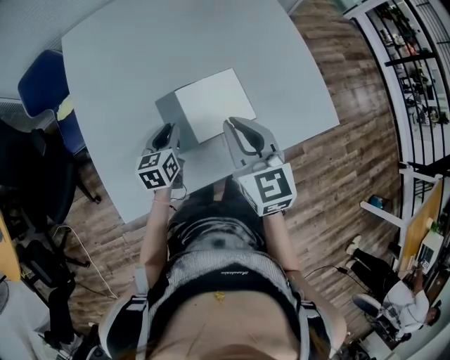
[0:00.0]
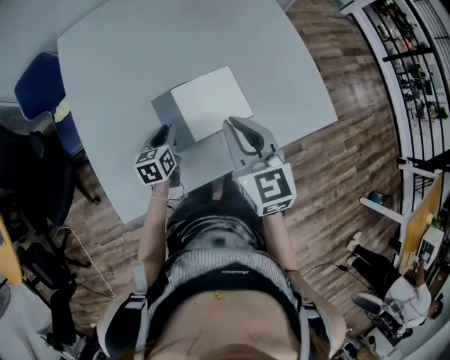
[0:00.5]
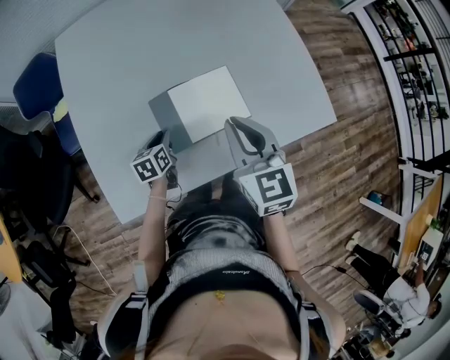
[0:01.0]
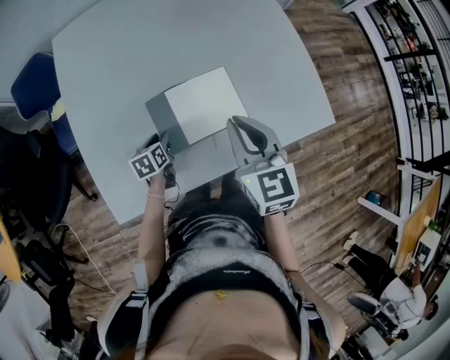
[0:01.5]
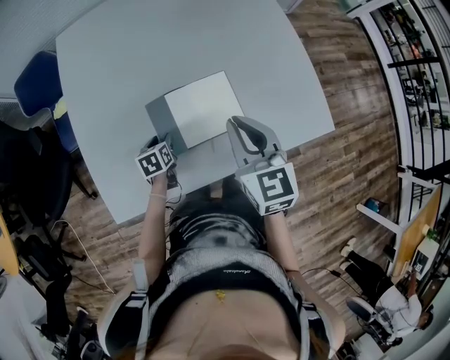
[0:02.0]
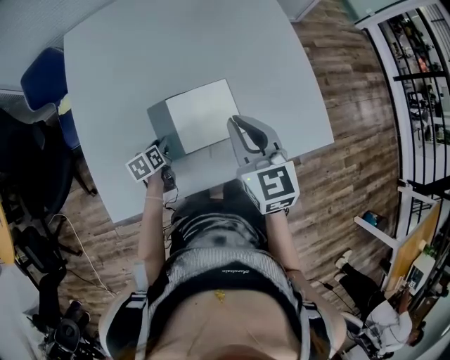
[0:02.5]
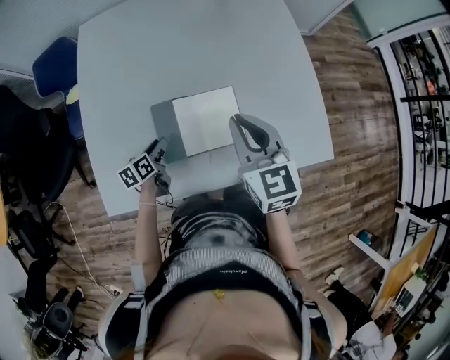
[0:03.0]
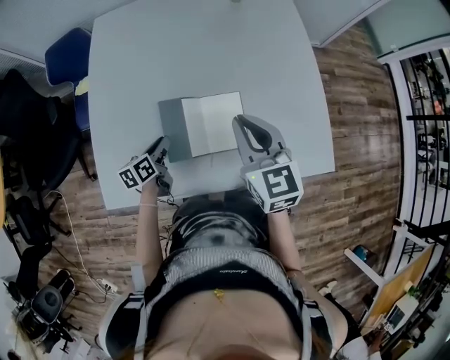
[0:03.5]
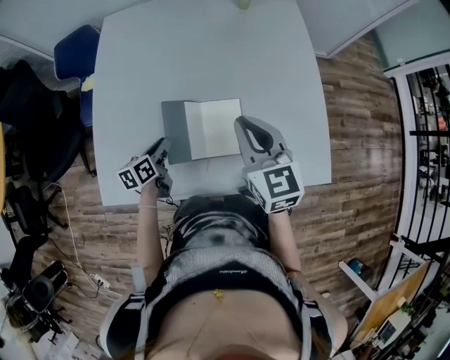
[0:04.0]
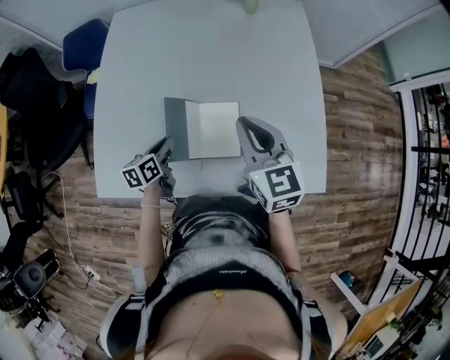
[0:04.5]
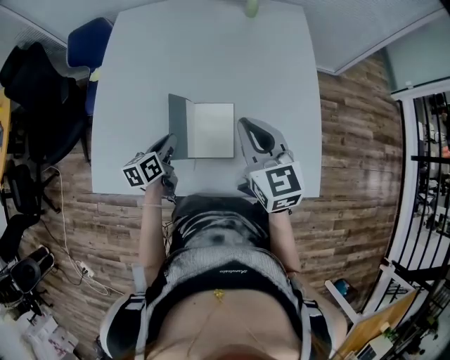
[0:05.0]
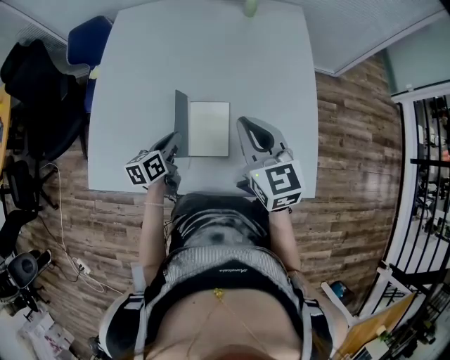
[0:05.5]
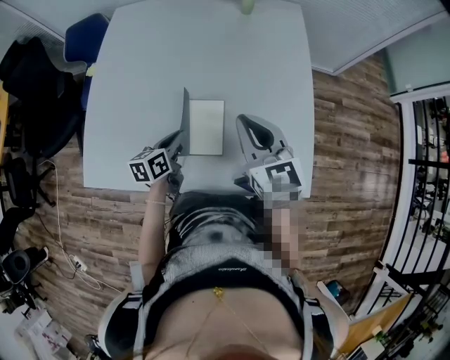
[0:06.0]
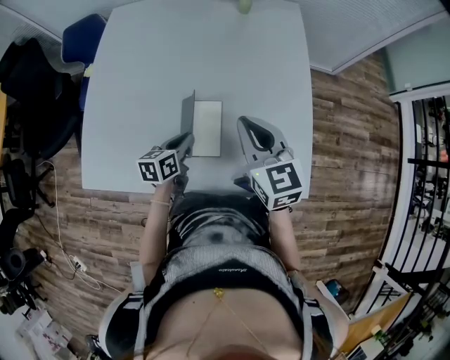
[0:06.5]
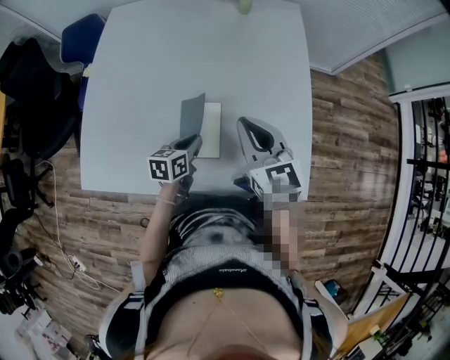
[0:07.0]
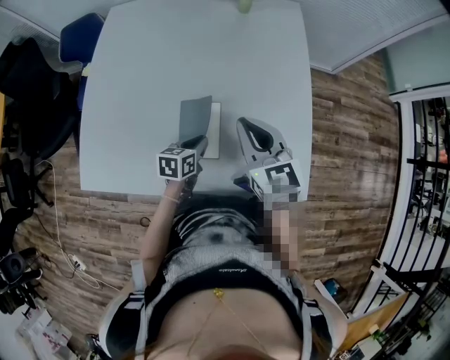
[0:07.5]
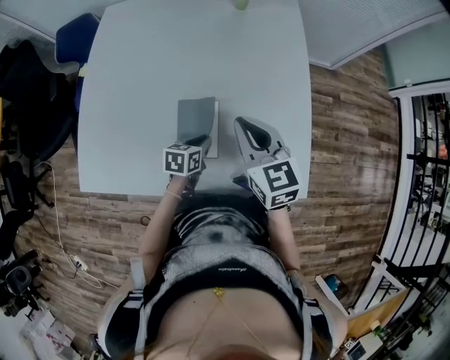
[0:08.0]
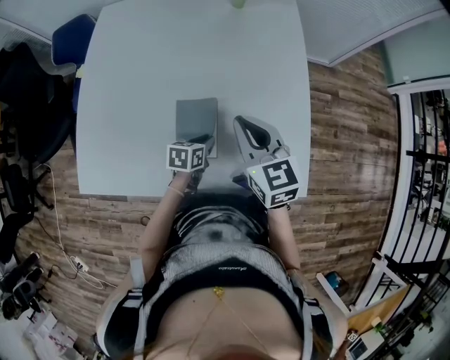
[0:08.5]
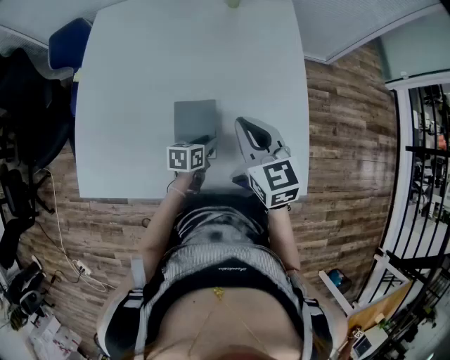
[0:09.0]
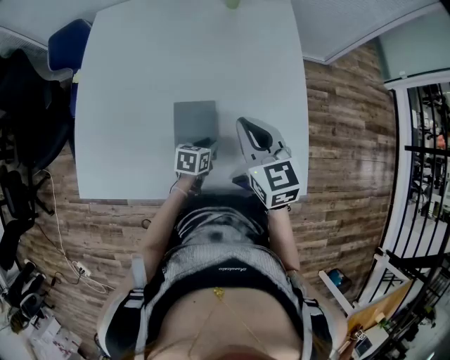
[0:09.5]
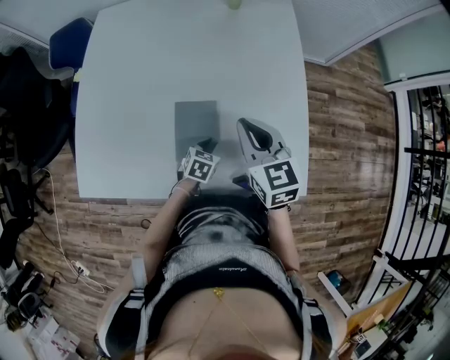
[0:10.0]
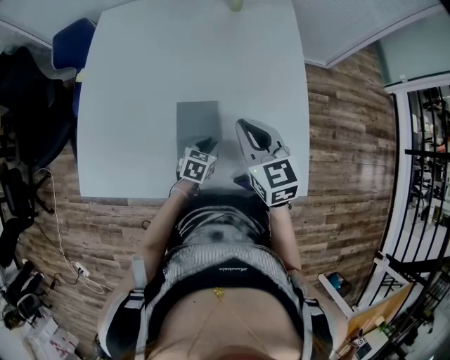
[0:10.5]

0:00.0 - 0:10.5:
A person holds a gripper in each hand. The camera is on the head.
0:00.0 - 0:02.0: The left gripper goes approximately 10 cm downward, turns by roughly 20 degrees, and opens up; the right gripper heads to the right, covering some 5 cm.
0:02.0 - 0:04.0: The right gripper travels forward by some 5 cm. Meanwhile the left gripper shifts roughly 10 cm upward, swivels approximately 30 degrees, and closes its fingers.
0:04.0 - 0:06.5: The left gripper goes about 15 cm to the right, while the right gripper heads to the right, covering some 10 cm.
0:06.5 - 0:08.5: The left gripper heads downward and to the right, covering roughly 10 cm.
0:08.5 - 0:10.5: The left gripper turns by some 20 degrees.

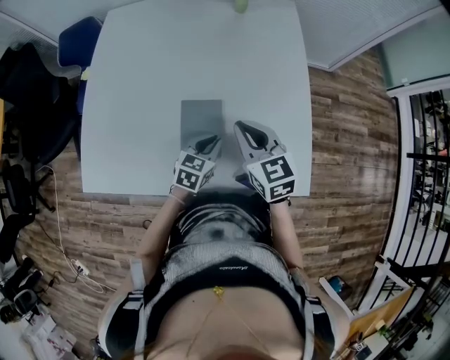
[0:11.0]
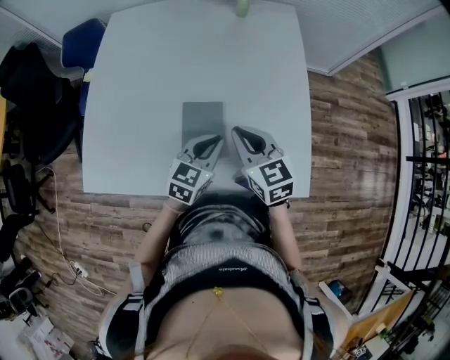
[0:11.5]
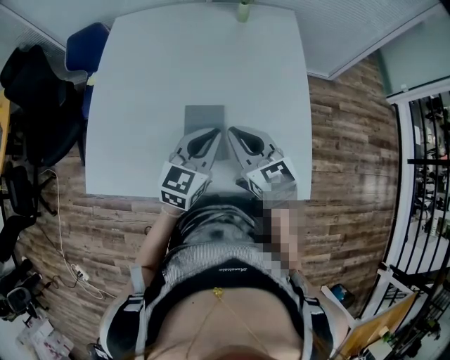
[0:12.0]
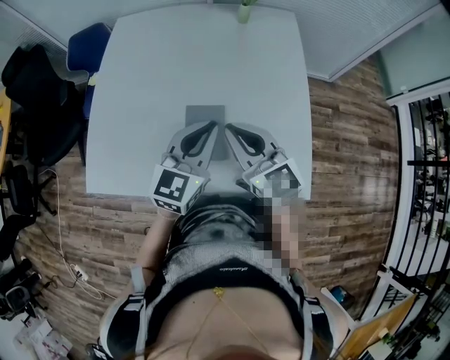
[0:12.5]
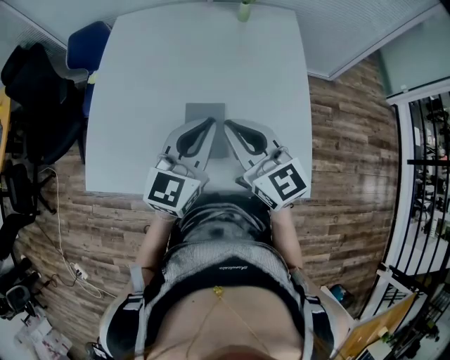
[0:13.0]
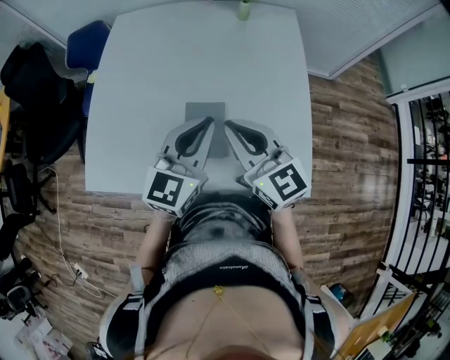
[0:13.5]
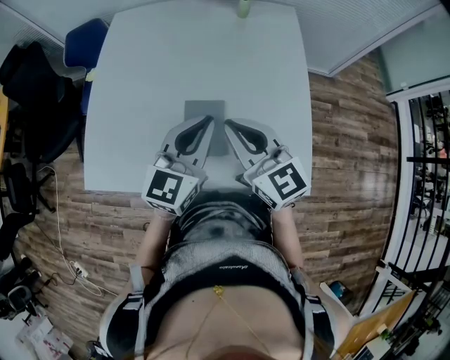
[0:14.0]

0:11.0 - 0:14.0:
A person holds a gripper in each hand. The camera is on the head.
0:11.0 - 0:12.5: The left gripper is displaced upward by roughly 20 cm, and changes its angle by about 30 degrees. The right gripper moves upward, some 10 cm.
0:12.5 - 0:14.0: There are only small adjustments of the grippers.

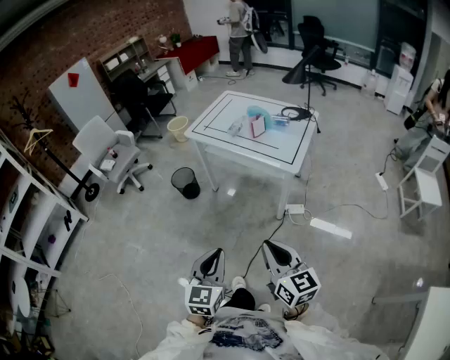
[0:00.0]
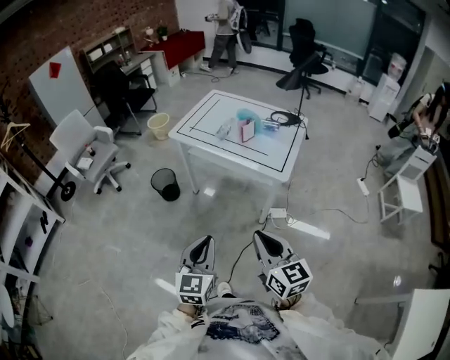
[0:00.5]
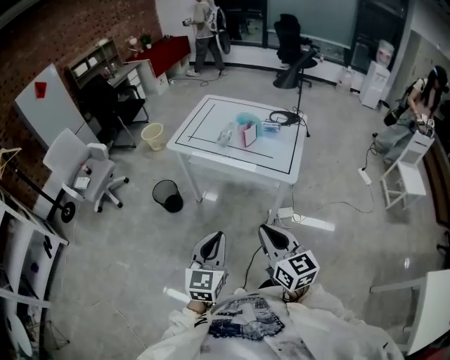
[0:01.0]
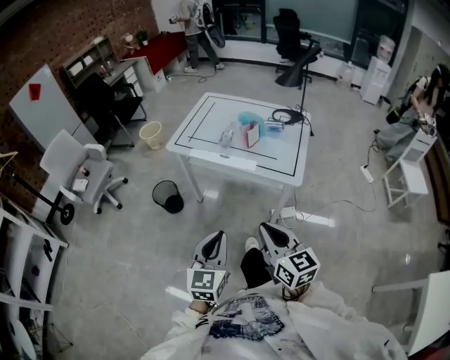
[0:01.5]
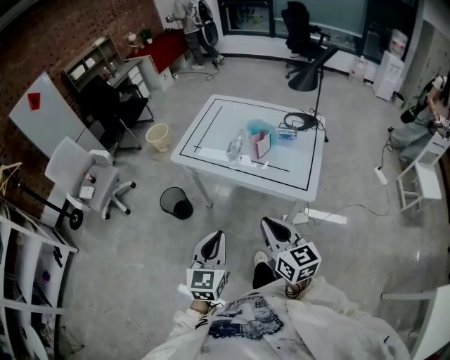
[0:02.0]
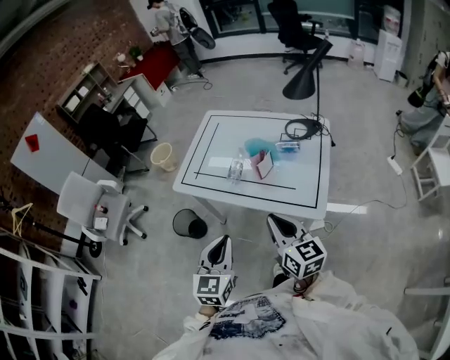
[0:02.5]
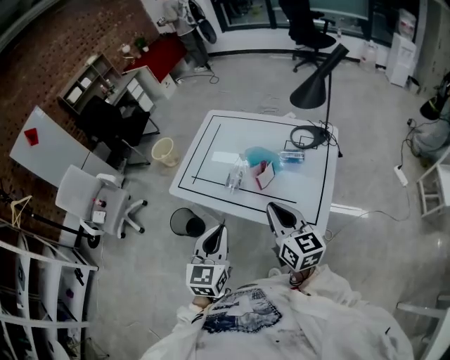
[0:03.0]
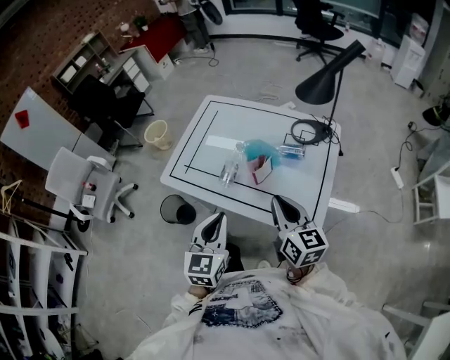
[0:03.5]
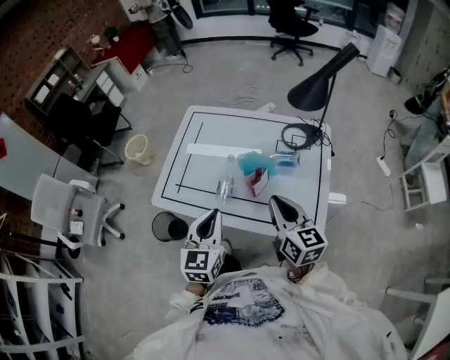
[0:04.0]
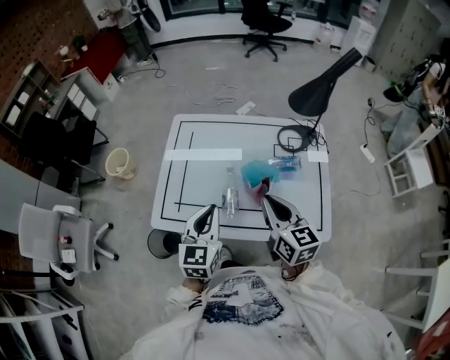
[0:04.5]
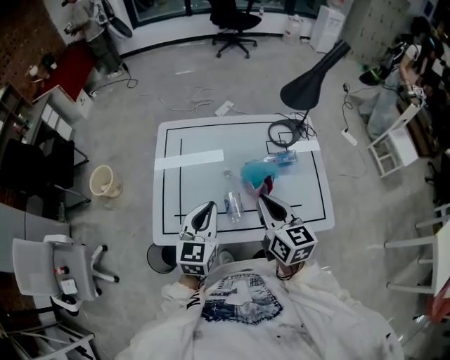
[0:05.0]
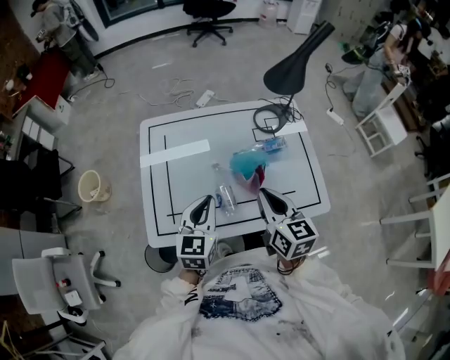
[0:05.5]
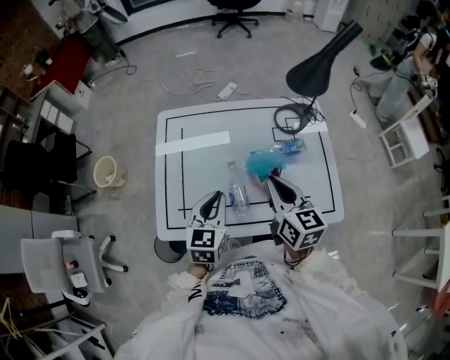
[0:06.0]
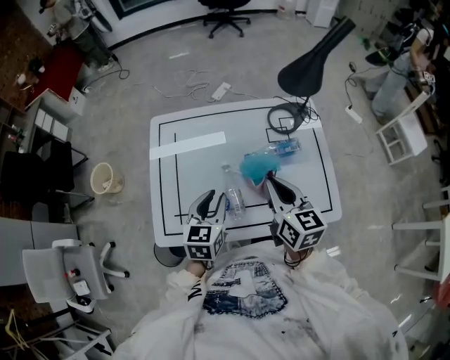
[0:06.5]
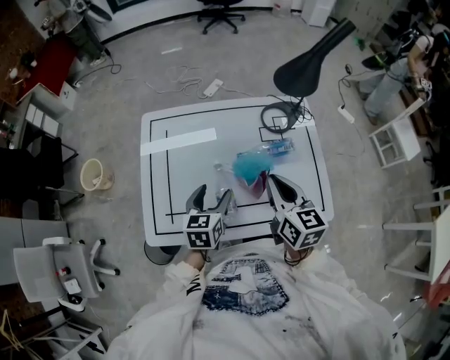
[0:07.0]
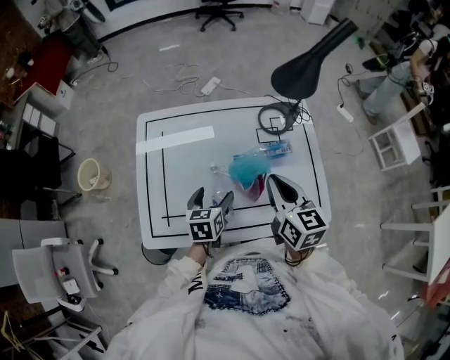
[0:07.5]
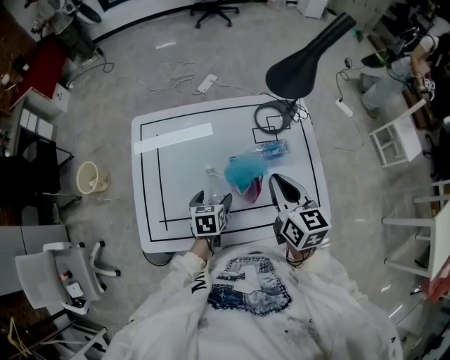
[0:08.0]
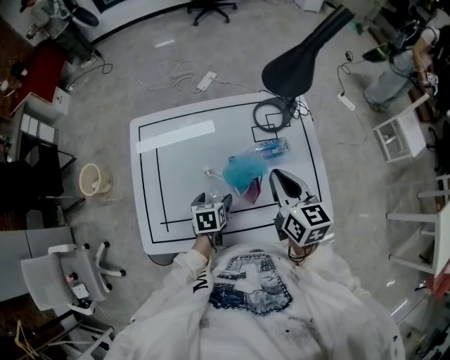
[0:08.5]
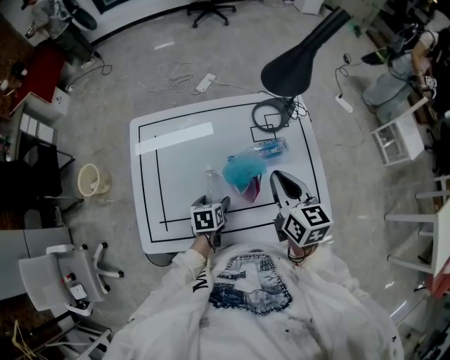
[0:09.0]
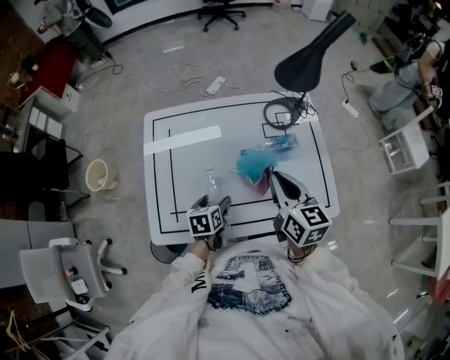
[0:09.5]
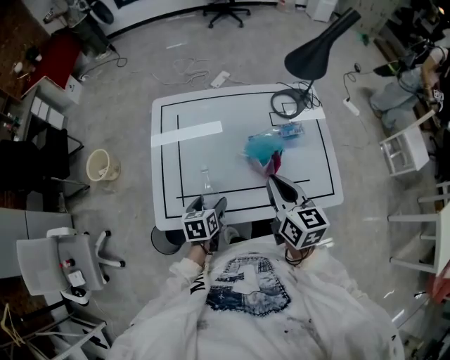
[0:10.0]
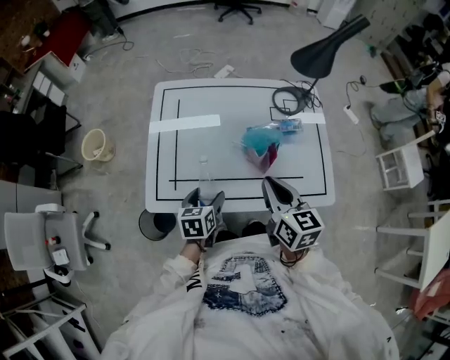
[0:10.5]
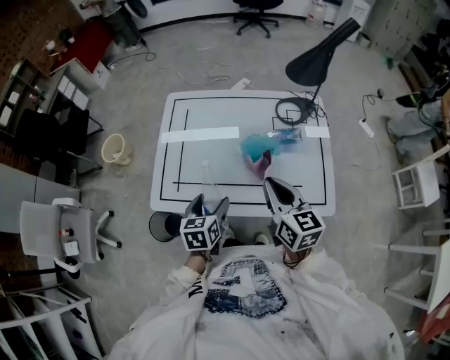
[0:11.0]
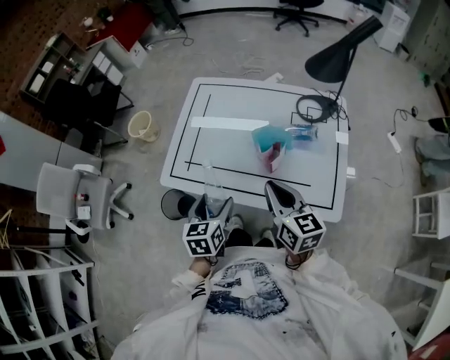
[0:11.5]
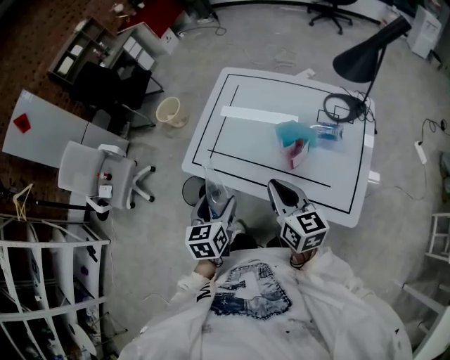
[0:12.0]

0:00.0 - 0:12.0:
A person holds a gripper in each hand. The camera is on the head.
0:00.0 - 0:02.0: Both grippers travel together forward, about 35 cm.
0:02.0 - 0:04.0: Both grippers travel together forward, approximately 35 cm.
0:04.0 - 0:06.0: The left gripper travels forward, to the left and downward by approximately 15 cm, and turns by roughly 20 degrees. The right gripper shifts some 15 cm forward and to the left.
0:06.0 - 0:08.0: The left gripper shifts approximately 15 cm downward, rotates roughly 30 degrees, and opens up; the right gripper shifts roughly 5 cm to the right.
0:08.0 - 0:10.0: The grippers both shift backward and to the left by roughly 15 cm.
0:10.0 - 0:12.0: The right gripper moves about 10 cm, and turns by approximately 30 degrees, while the left gripper changes place by about 20 cm, and turns by approximately 40 degrees.

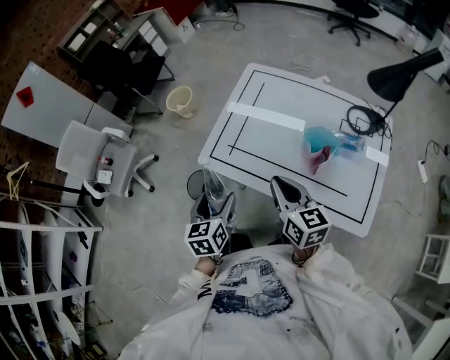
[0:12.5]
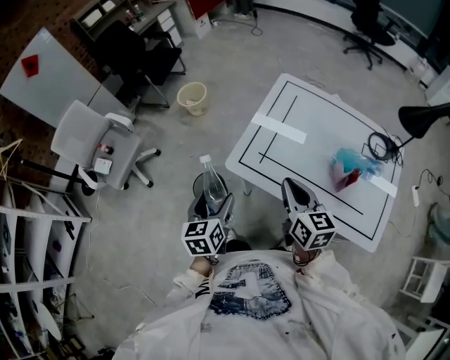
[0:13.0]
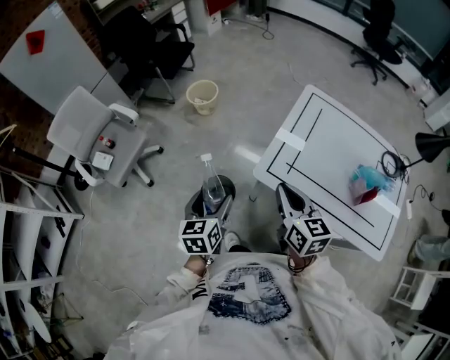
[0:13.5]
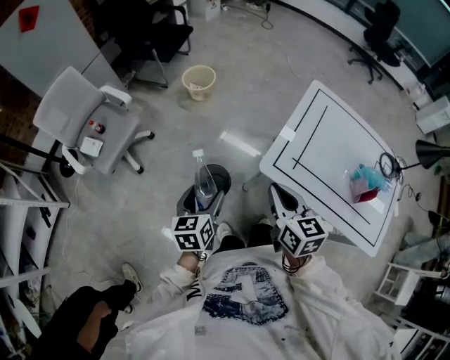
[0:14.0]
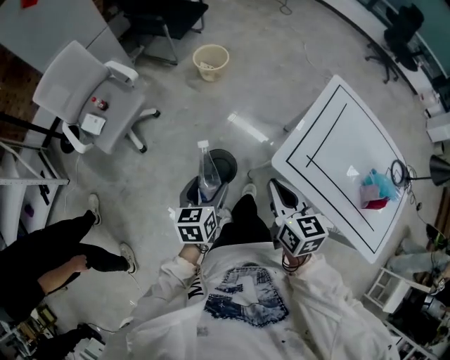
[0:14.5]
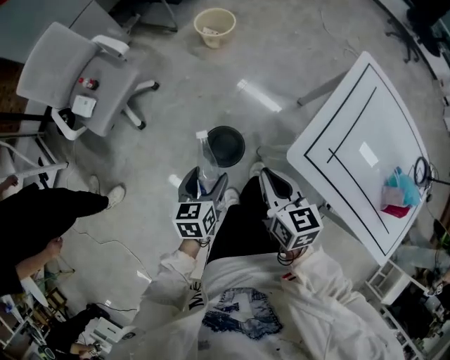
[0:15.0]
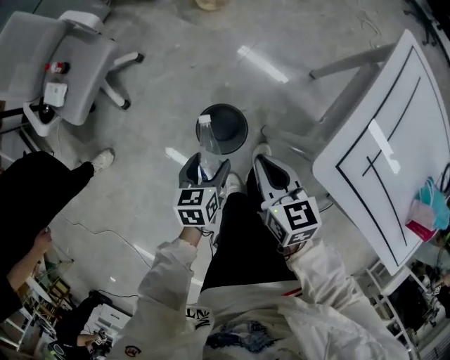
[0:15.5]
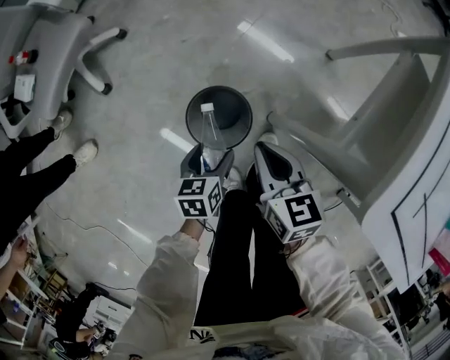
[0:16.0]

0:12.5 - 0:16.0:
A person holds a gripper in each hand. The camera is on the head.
0:12.5 - 0:14.5: The two grippers go some 35 cm to the left.
0:14.5 - 0:16.0: Both grippers move downward, roughly 40 cm.
